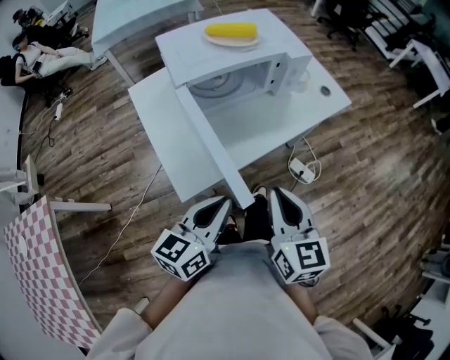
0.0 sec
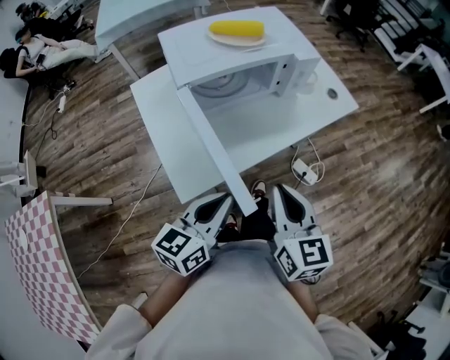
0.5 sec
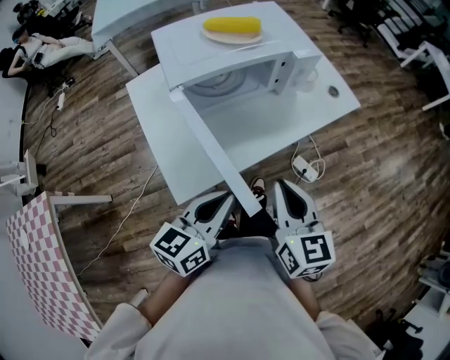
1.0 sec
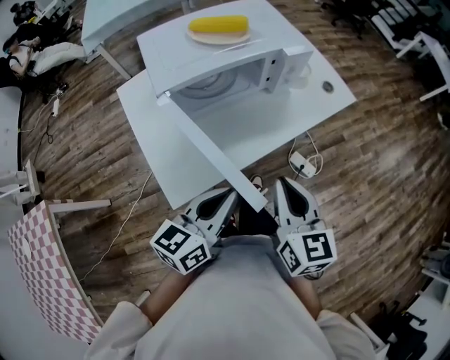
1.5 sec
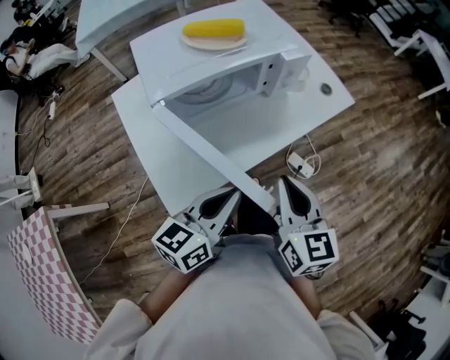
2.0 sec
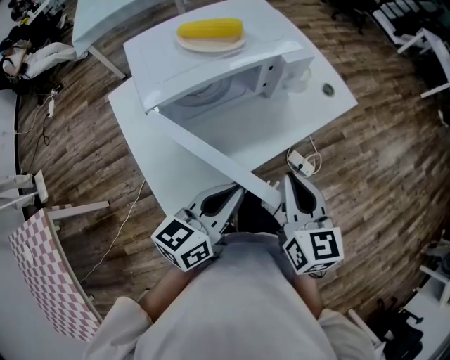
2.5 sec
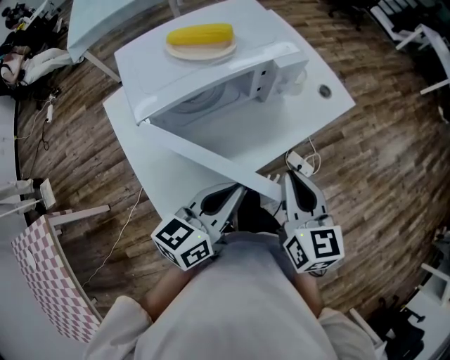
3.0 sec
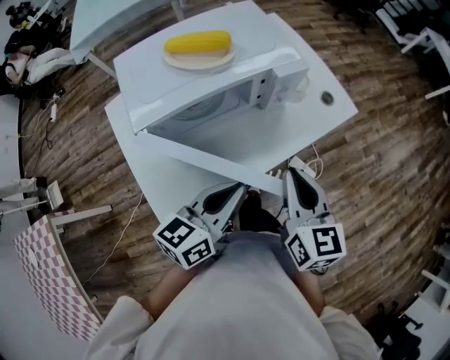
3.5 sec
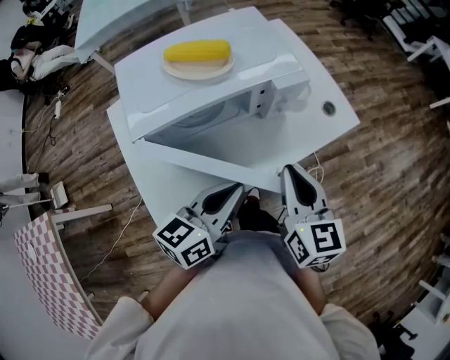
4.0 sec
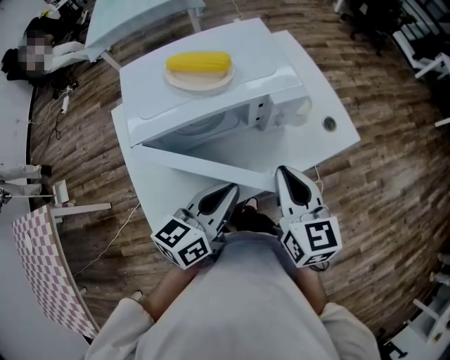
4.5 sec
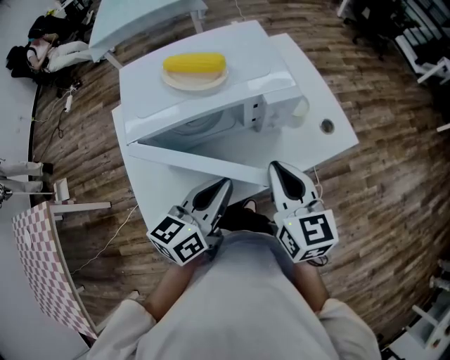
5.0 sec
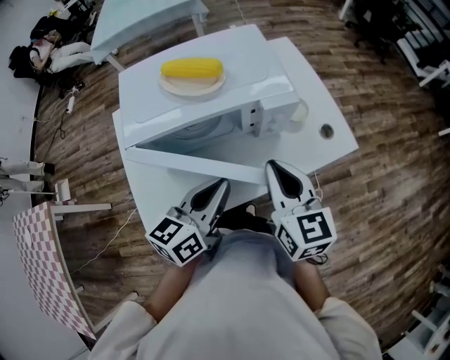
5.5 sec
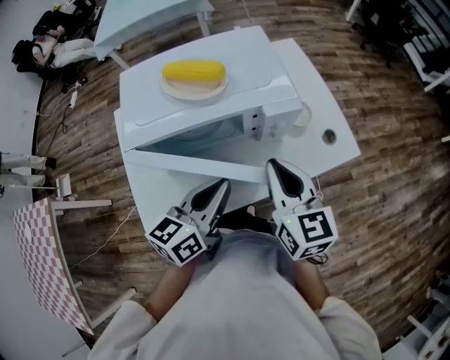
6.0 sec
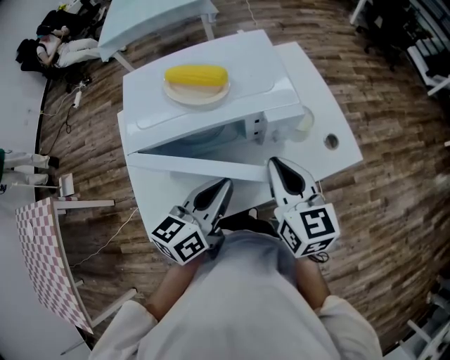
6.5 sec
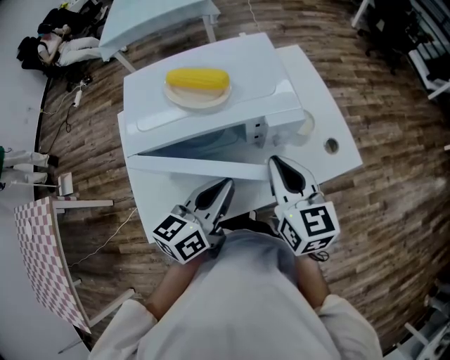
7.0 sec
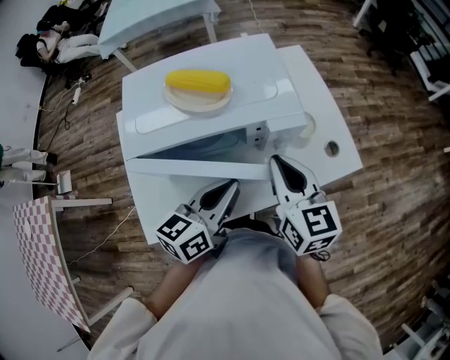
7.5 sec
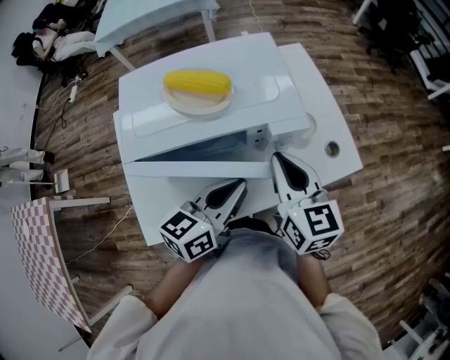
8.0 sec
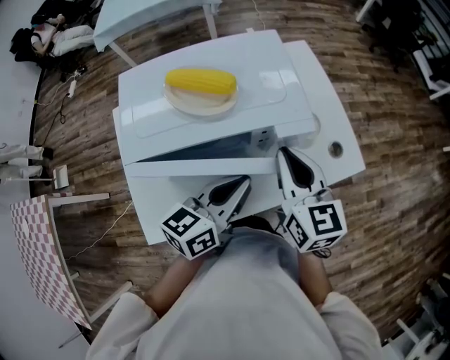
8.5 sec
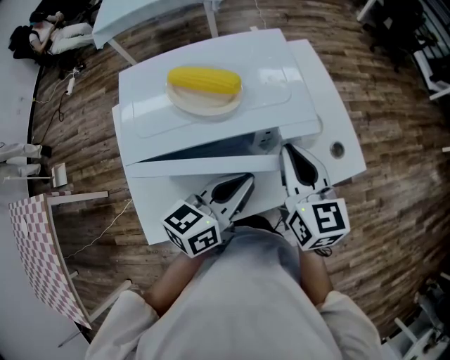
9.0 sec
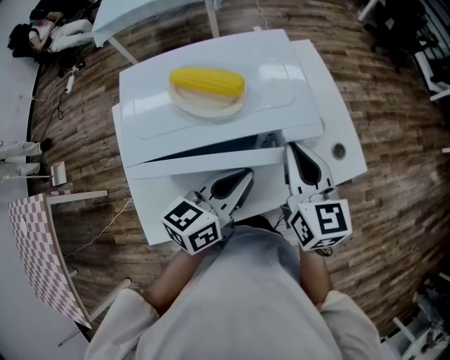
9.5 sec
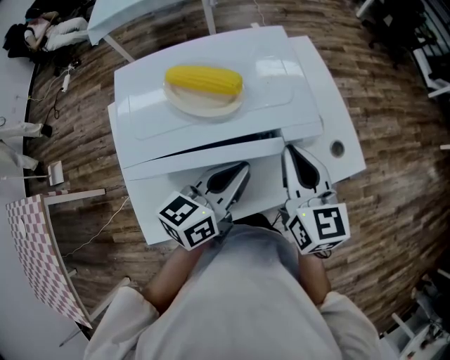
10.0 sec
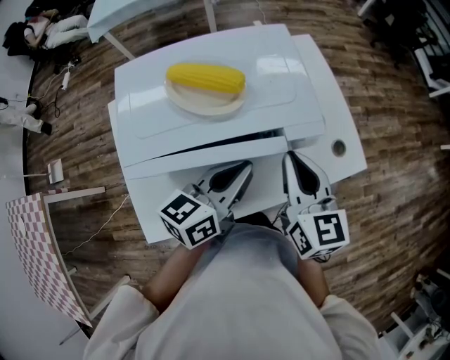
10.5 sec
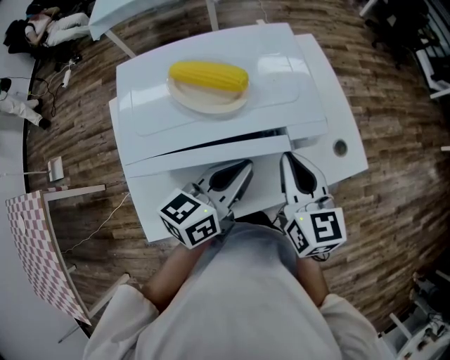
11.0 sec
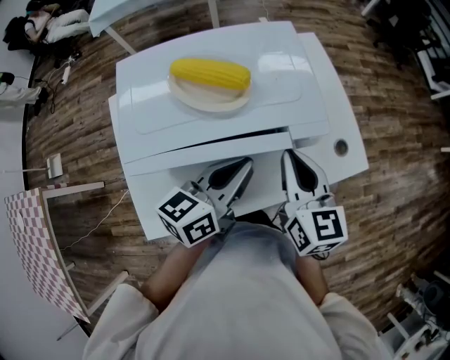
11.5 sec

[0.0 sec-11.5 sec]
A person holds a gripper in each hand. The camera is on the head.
0.0 sec to 2.0 sec: The grippers both shift forward by about 10 cm.
2.0 sec to 4.0 sec: The two grippers go roughly 10 cm forward.
4.0 sec to 6.0 sec: The two grippers go approximately 5 cm forward.
6.0 sec to 7.5 sec: There are only small adjustments of the grippers.
7.5 sec to 9.5 sec: The right gripper goes approximately 5 cm forward.
9.5 sec to 11.5 sec: There are only small adjustments of the grippers.

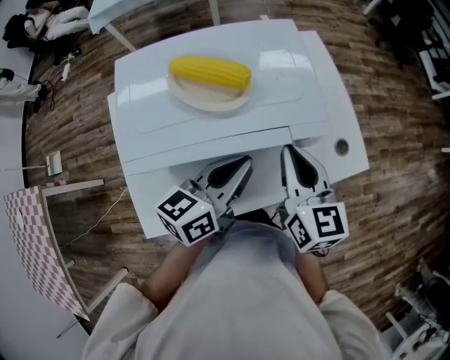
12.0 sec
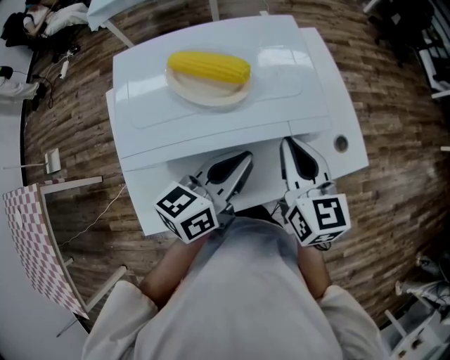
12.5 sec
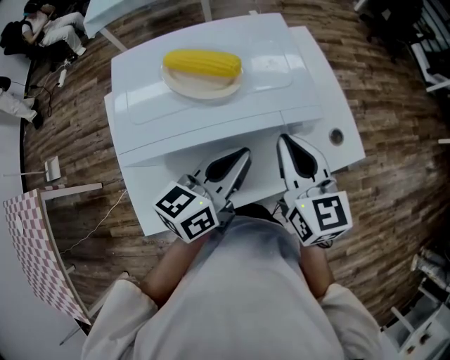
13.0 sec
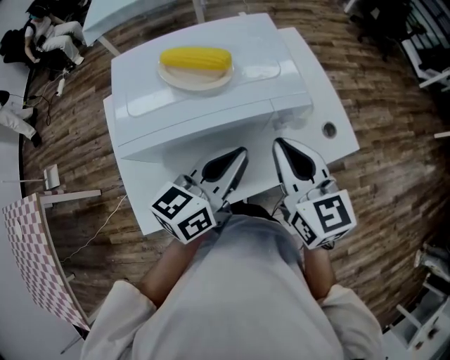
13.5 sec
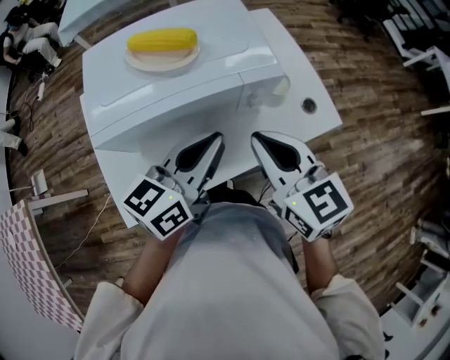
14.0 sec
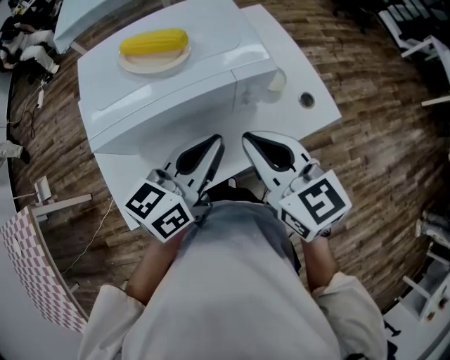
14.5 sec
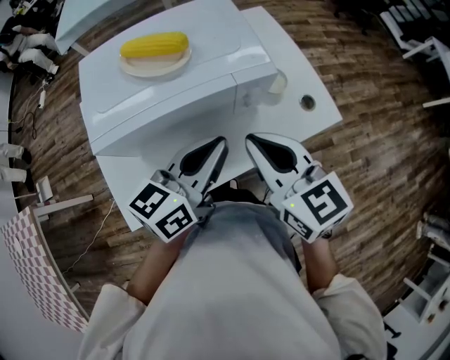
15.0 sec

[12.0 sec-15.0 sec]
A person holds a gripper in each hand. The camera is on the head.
12.0 sec to 13.5 sec: The right gripper heads backward, covering some 5 cm; the left gripper changes place by approximately 5 cm.
13.5 sec to 15.0 sec: The grippers make only small movements.

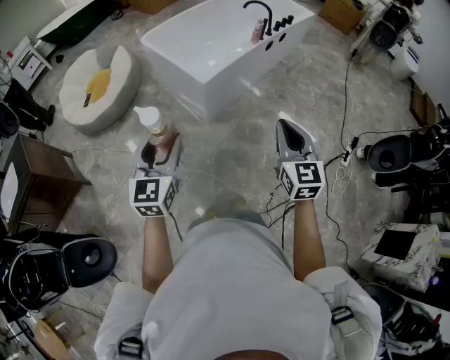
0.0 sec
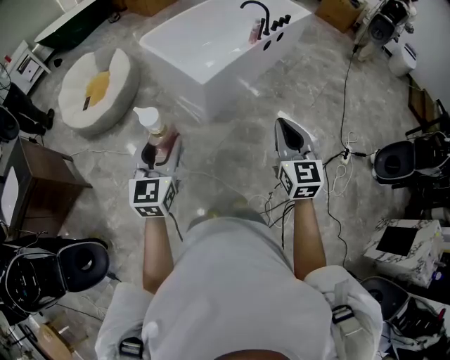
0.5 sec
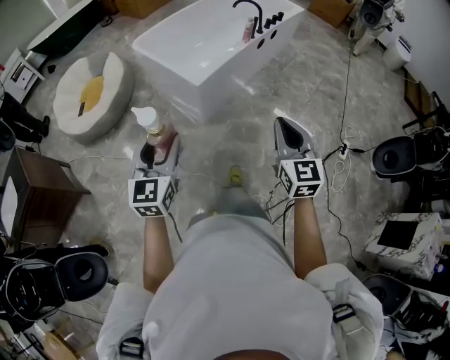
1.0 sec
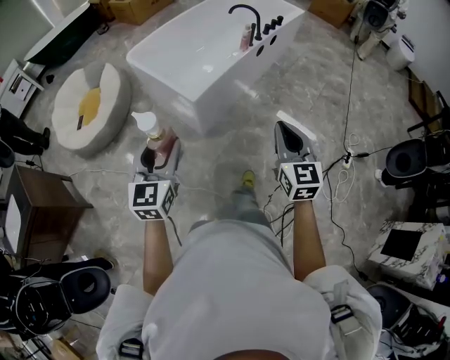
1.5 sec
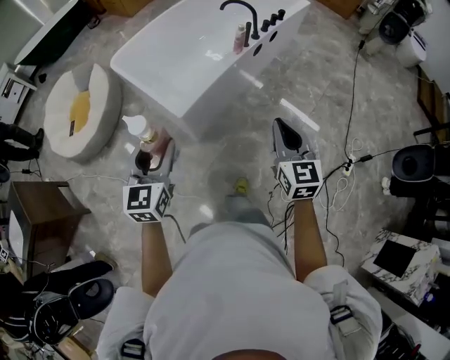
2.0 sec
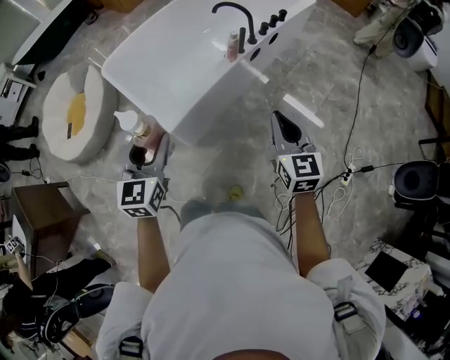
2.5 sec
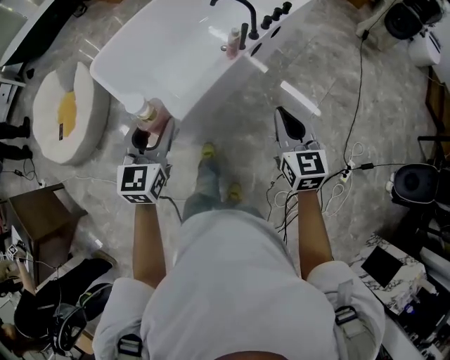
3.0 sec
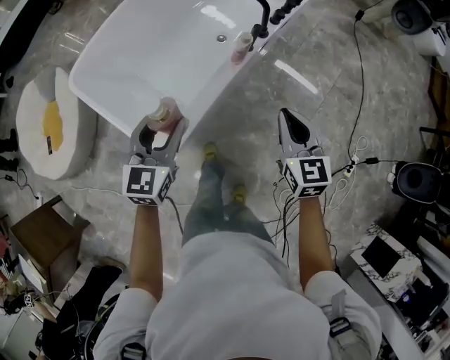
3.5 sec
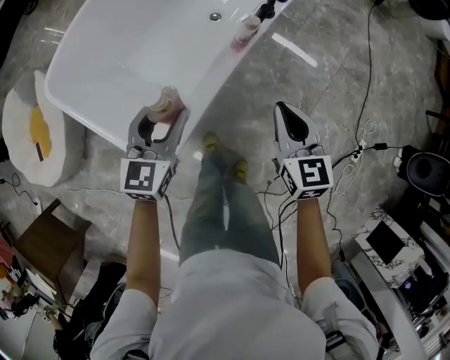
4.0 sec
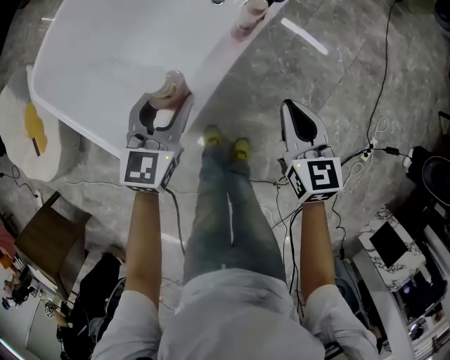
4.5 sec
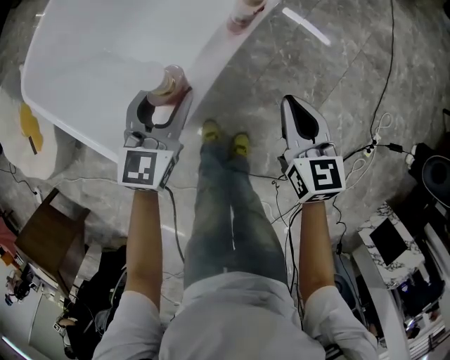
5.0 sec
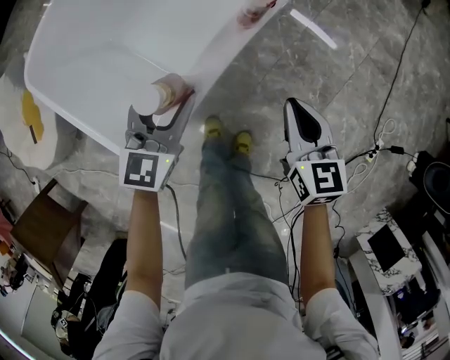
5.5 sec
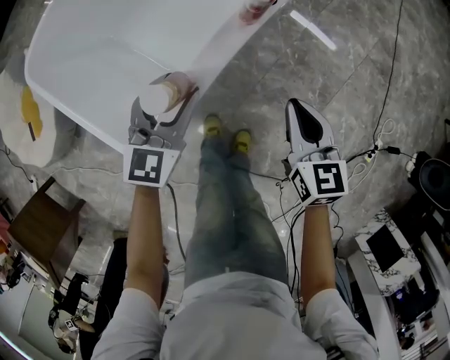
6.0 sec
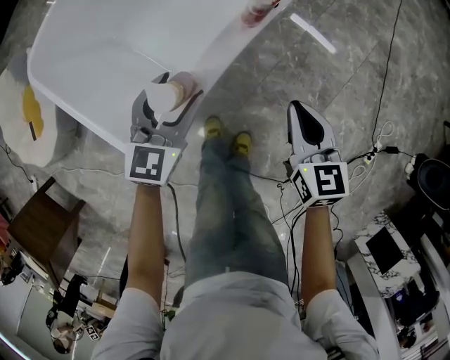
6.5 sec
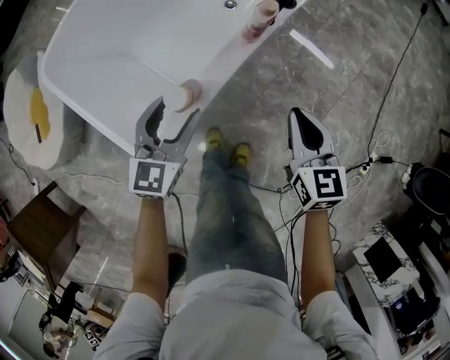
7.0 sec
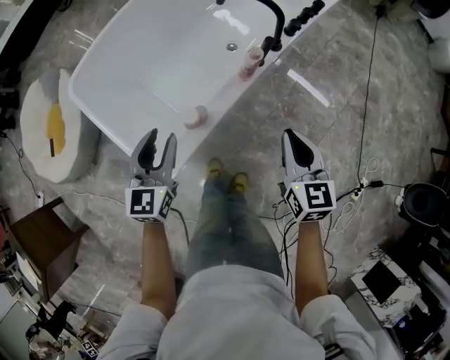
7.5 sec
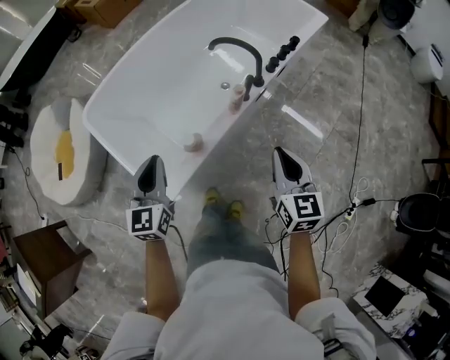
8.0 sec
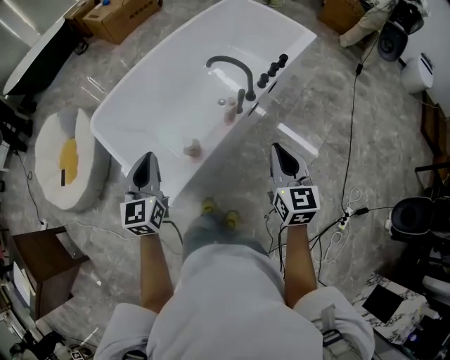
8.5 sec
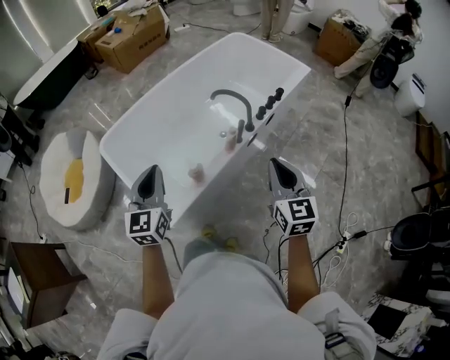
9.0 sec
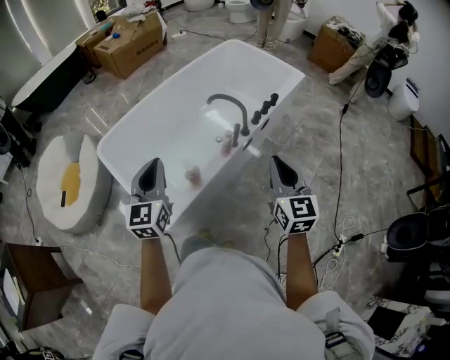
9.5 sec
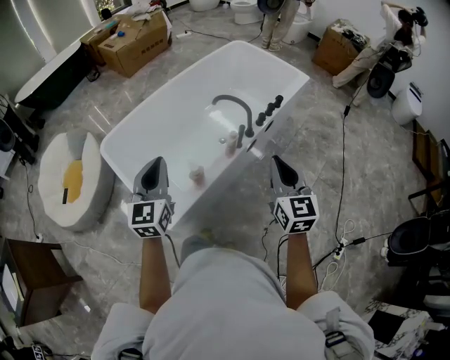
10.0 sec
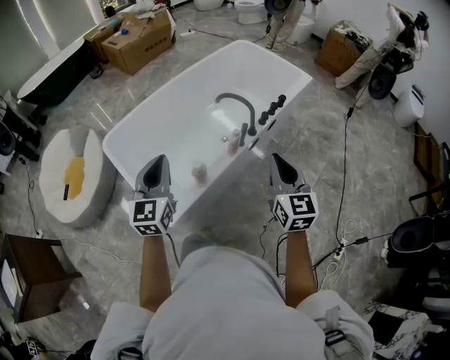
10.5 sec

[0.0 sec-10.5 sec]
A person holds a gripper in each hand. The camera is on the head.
0.0 sec to 2.0 sec: The left gripper goes approximately 30 cm forward. Meanwhile the right gripper shifts some 35 cm forward and to the right.
2.0 sec to 4.0 sec: The two grippers travel together, forward, about 50 cm. The two grippers go approximately 25 cm downward. The left gripper swivels some 20 degrees.
4.0 sec to 6.5 sec: Both grippers travel together downward, roughly 15 cm.
6.5 sec to 8.5 sec: Both grippers travel together upward, about 35 cm. The left gripper turns by approximately 30 degrees, and closes.
8.5 sec to 10.5 sec: The two grippers go roughly 10 cm upward.

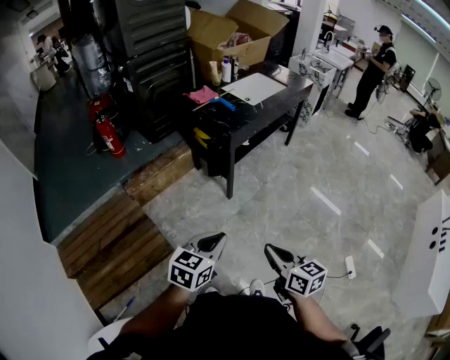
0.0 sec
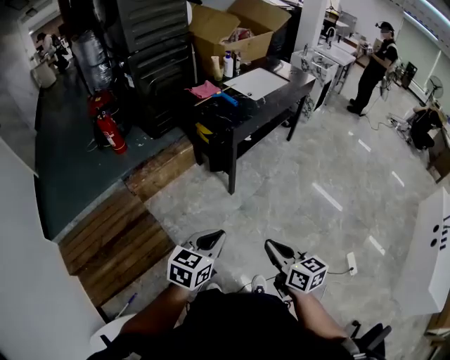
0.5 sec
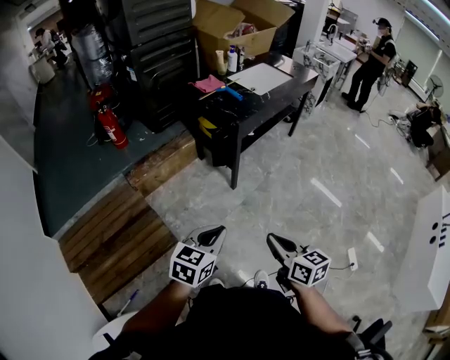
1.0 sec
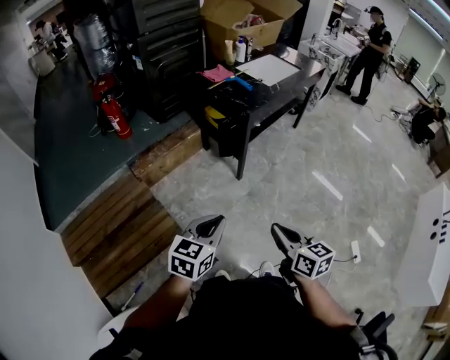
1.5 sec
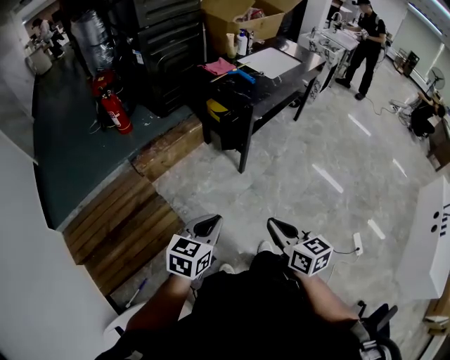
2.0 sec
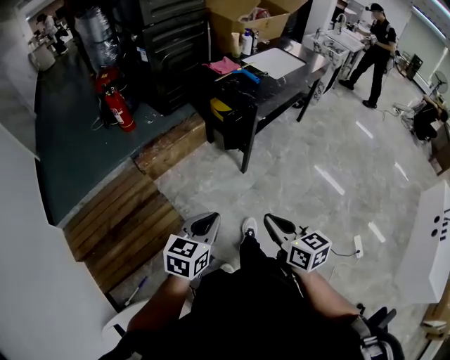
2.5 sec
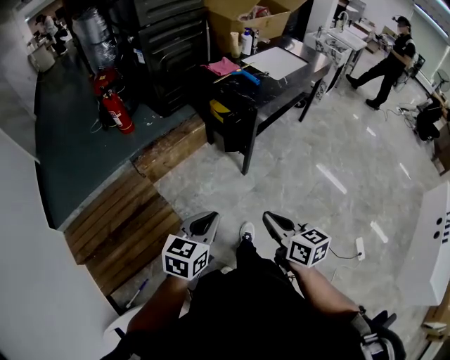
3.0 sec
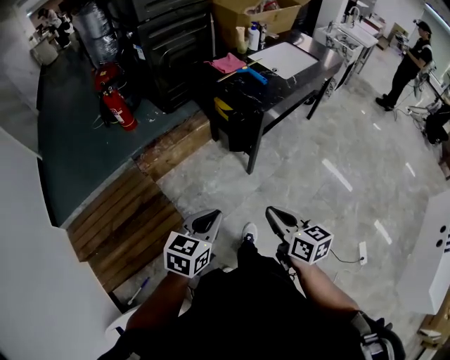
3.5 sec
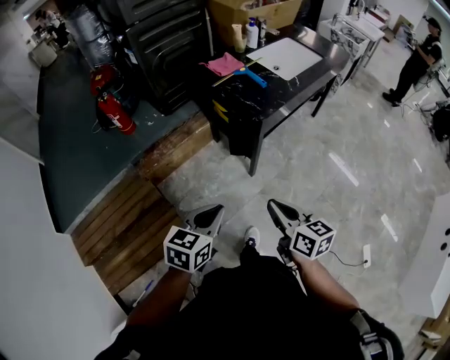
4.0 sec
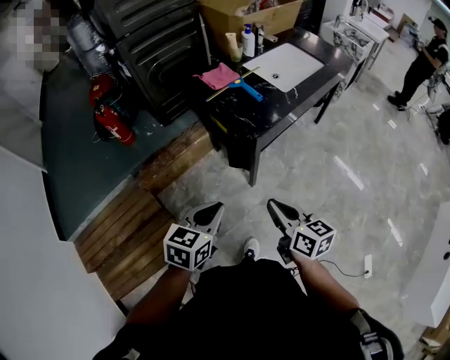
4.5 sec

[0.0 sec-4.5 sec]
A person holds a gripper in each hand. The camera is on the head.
0.0 sec to 2.0 sec: The two grippers go roughly 10 cm to the left.
2.0 sec to 4.5 sec: Both grippers travel together forward, roughly 30 cm.
